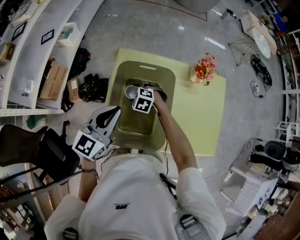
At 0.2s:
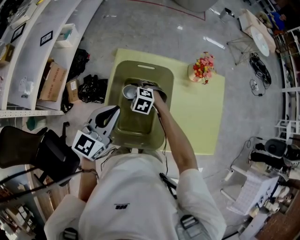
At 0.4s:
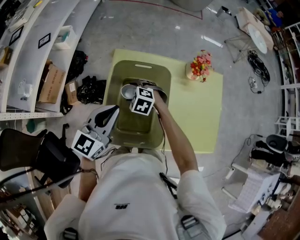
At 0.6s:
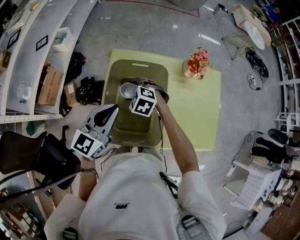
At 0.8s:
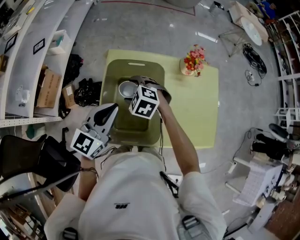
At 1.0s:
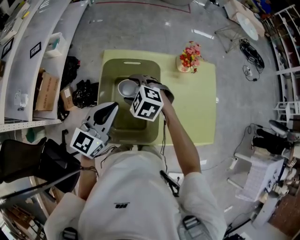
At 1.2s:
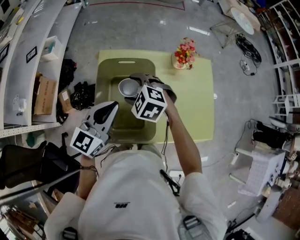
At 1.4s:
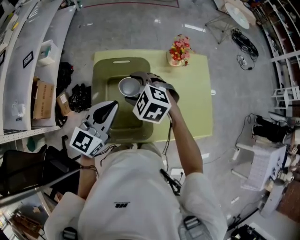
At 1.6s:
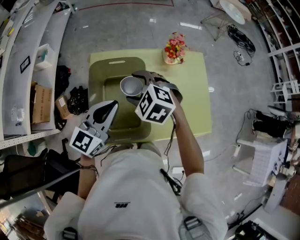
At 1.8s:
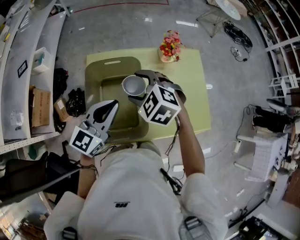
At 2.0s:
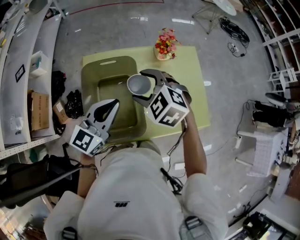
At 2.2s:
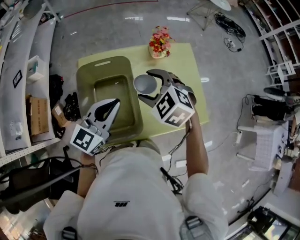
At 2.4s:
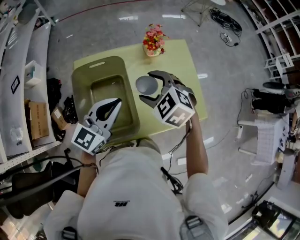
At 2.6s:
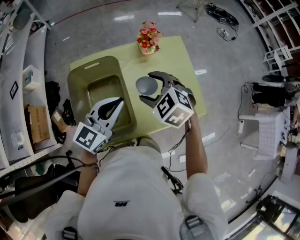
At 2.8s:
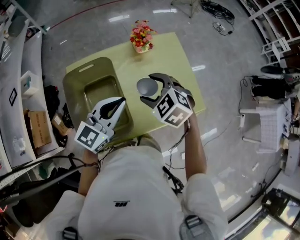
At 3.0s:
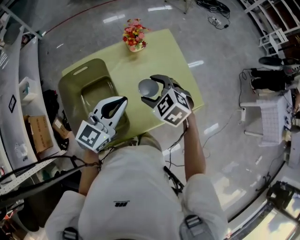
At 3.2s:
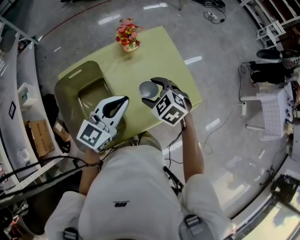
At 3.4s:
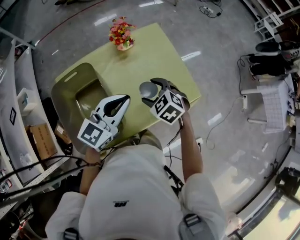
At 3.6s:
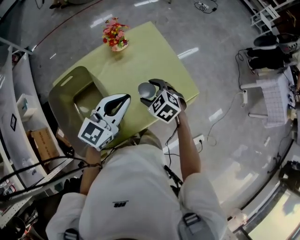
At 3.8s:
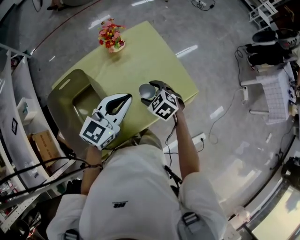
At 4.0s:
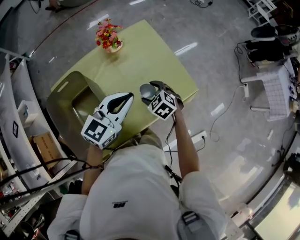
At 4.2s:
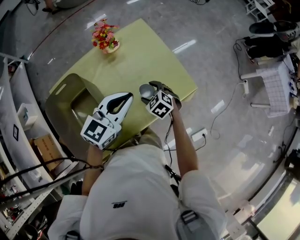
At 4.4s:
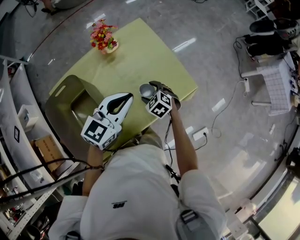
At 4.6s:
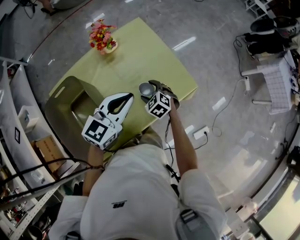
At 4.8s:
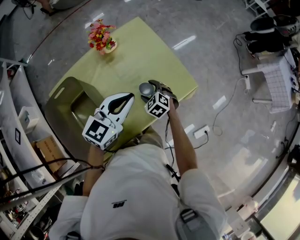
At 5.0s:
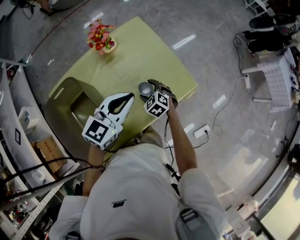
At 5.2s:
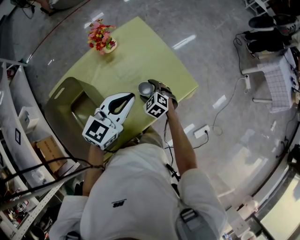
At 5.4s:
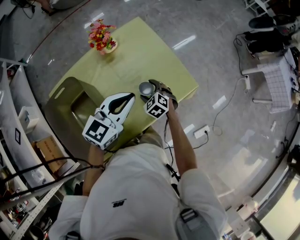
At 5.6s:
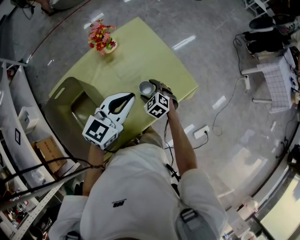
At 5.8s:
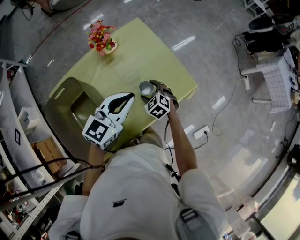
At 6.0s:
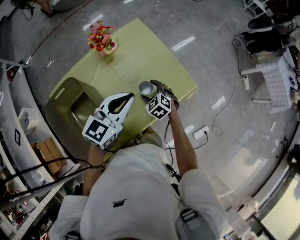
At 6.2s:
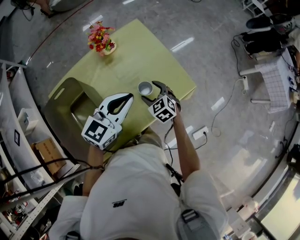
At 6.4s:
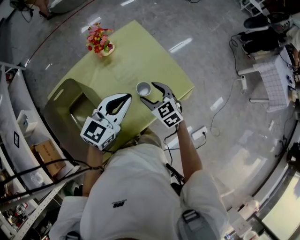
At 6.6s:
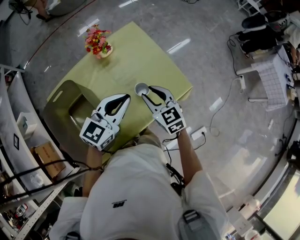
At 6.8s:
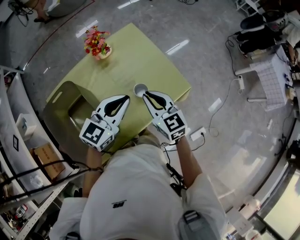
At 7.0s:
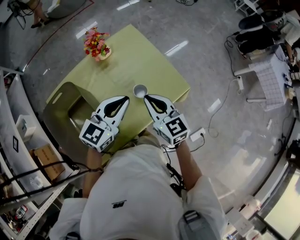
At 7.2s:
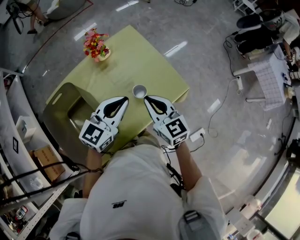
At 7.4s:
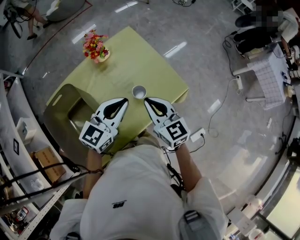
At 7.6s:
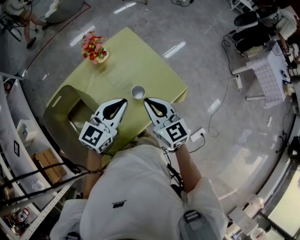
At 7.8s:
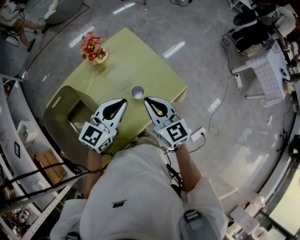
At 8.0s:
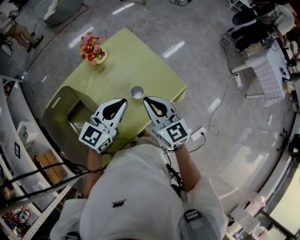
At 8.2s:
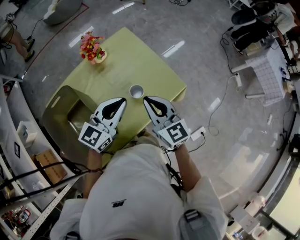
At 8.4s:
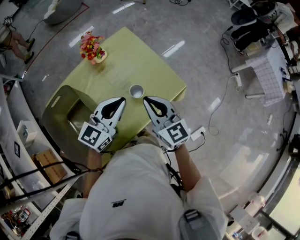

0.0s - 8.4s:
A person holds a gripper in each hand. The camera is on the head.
0.0s - 1.4s: The right gripper shifts roughly 20 cm upward. Meanwhile the left gripper travels to the right by about 5 cm.
1.4s - 2.8s: Both grippers travel together to the right, roughly 15 cm. The left gripper swivels about 20 degrees, while the right gripper swivels roughly 30 degrees.
2.8s - 4.2s: The left gripper moves to the right, roughly 15 cm. Meanwhile the right gripper is displaced downward and to the right by some 25 cm, and turns by approximately 20 degrees.
4.2s - 5.6s: The grippers stay close to where they were, moving slightly.
5.6s - 7.0s: The right gripper is displaced upward by approximately 20 cm, tilts its fingers about 40 degrees upward, and closes up.
7.0s - 8.4s: The grippers stay close to where they were, moving slightly.

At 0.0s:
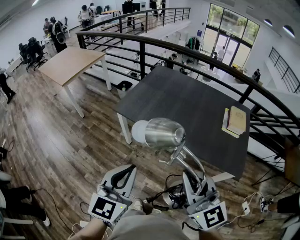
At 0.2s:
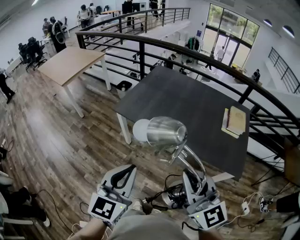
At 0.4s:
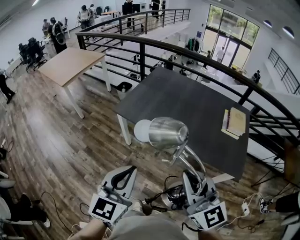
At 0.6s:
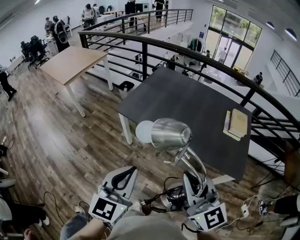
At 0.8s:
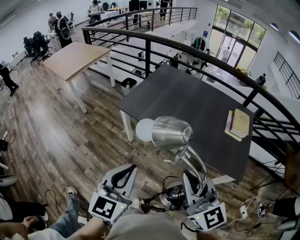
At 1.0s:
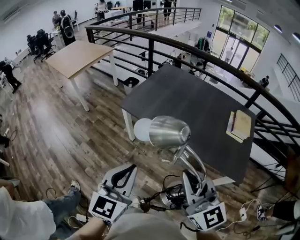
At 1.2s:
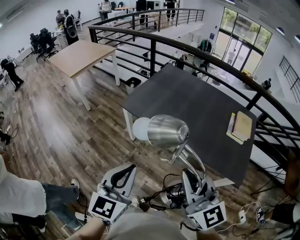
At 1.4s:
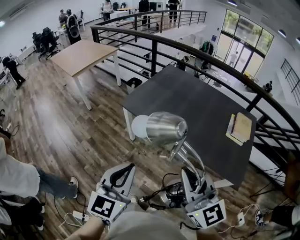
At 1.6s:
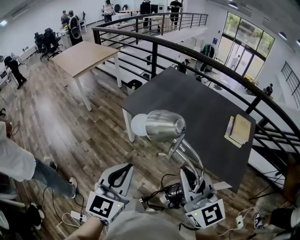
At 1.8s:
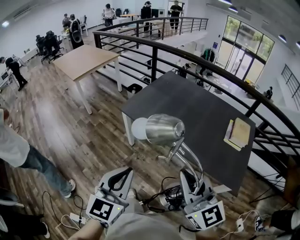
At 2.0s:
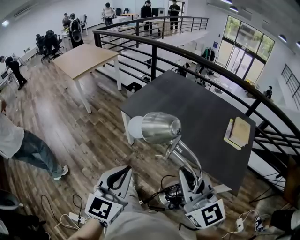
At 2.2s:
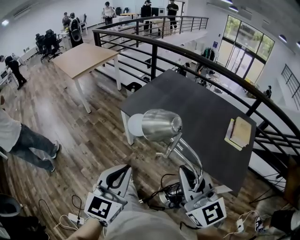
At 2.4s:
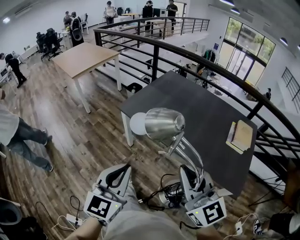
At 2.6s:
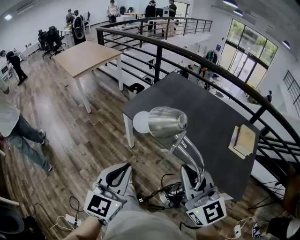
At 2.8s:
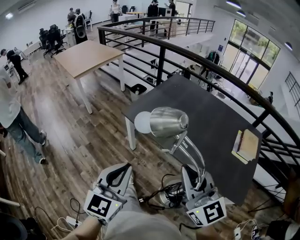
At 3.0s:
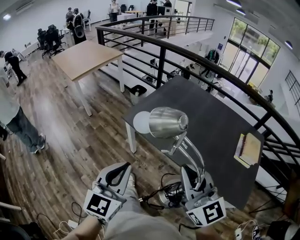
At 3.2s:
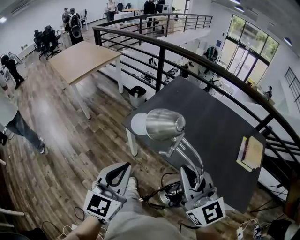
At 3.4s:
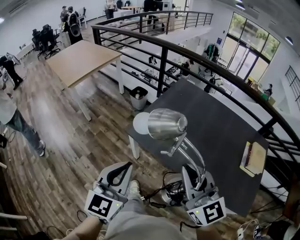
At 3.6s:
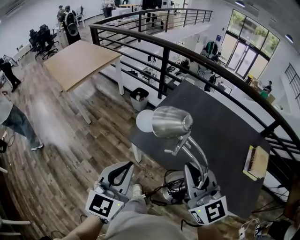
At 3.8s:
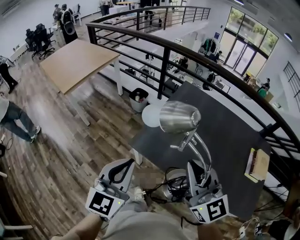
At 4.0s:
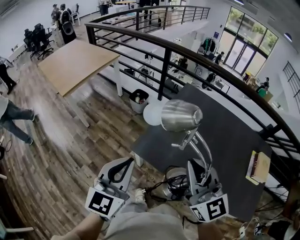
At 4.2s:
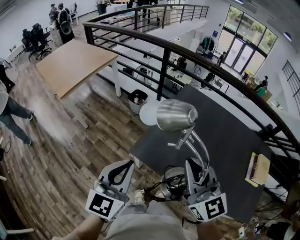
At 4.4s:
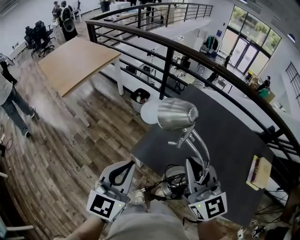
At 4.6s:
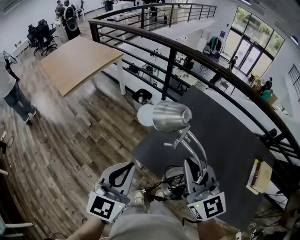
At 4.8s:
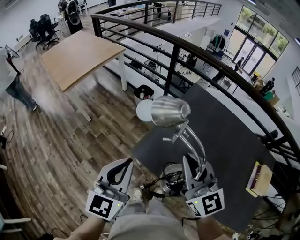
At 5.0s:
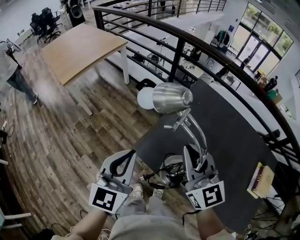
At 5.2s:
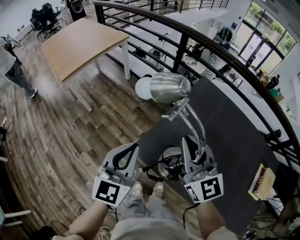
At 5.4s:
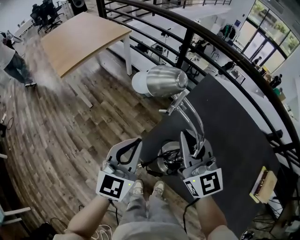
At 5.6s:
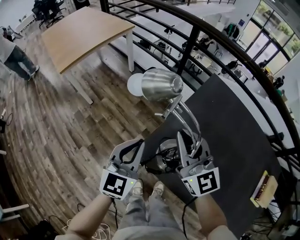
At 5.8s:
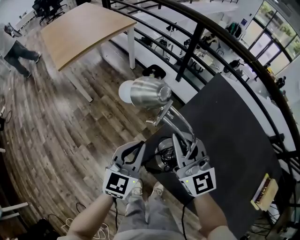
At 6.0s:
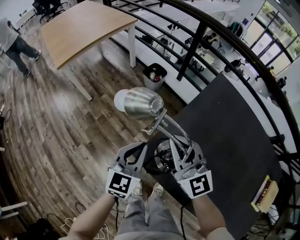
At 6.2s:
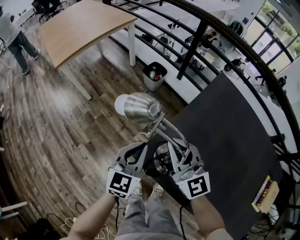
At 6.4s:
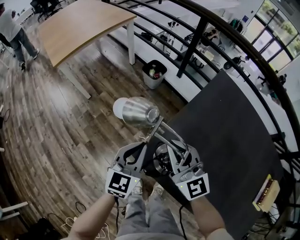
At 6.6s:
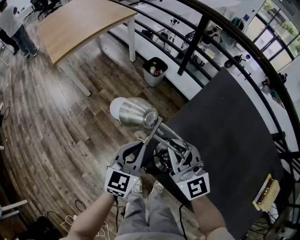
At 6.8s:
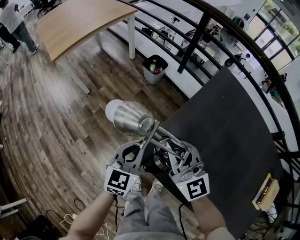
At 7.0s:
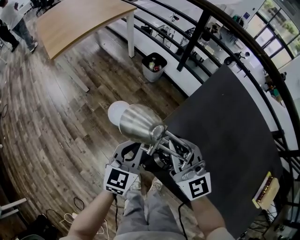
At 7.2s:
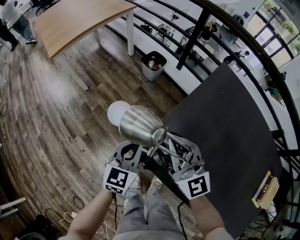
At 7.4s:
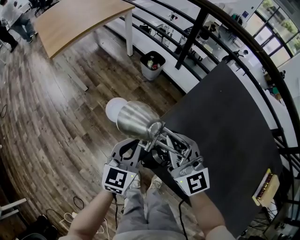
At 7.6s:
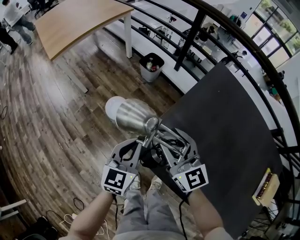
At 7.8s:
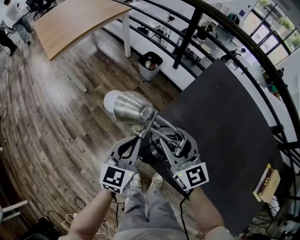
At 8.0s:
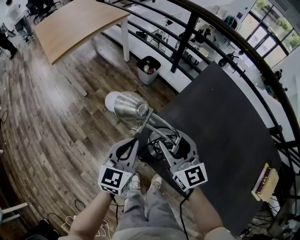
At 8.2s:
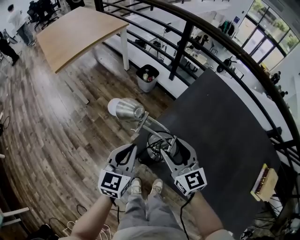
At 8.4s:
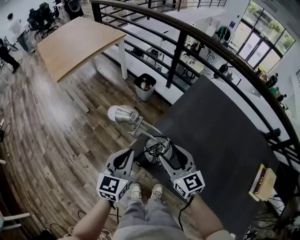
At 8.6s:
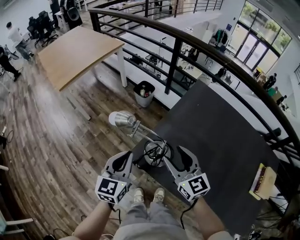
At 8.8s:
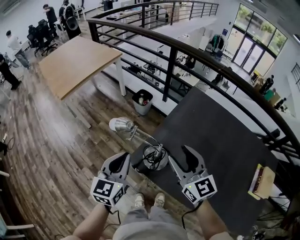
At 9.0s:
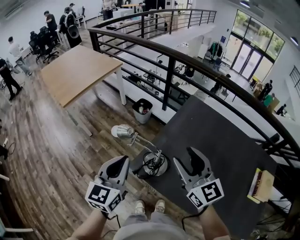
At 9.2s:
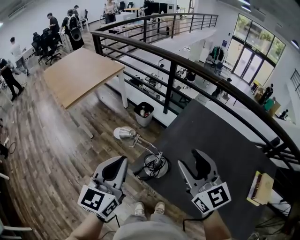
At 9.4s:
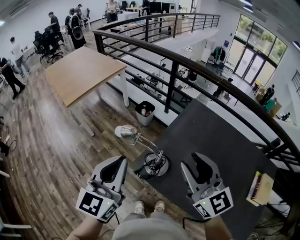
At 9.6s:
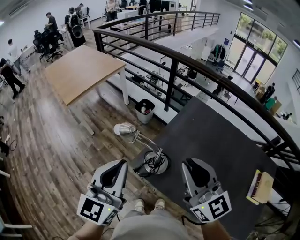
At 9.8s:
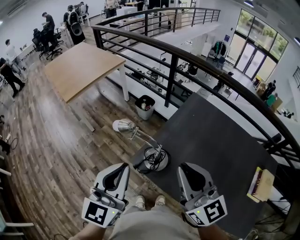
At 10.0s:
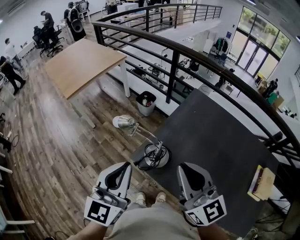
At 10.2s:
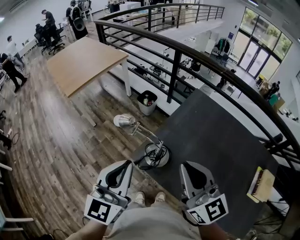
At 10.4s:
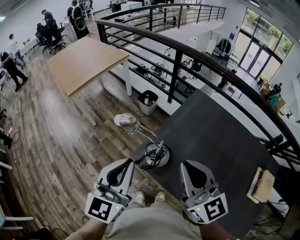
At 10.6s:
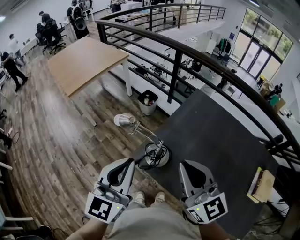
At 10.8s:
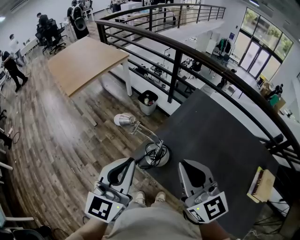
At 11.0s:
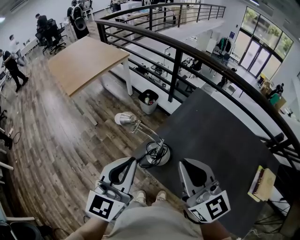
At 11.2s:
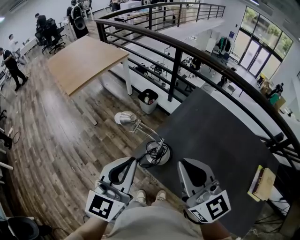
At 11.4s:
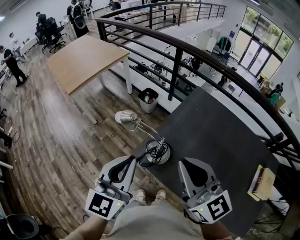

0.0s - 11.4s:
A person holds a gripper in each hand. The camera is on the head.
0.0s - 1.4s: The grippers move only a little.
1.4s - 2.8s: The two grippers go about 10 cm forward.
2.8s - 4.2s: The two grippers go approximately 35 cm forward.
4.2s - 5.6s: Both grippers travel together forward and downward, about 25 cm.
5.6s - 7.2s: The grippers both shift downward by approximately 15 cm.
7.2s - 8.6s: The left gripper shifts some 15 cm upward and backward, while the right gripper goes roughly 10 cm backward, to the right and upward, and opens.
8.6s - 10.0s: Both grippers move upward and backward, roughly 20 cm. The right gripper closes its fingers.
10.0s - 11.4s: The grippers stay close to where they were, moving slightly.

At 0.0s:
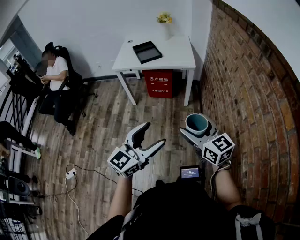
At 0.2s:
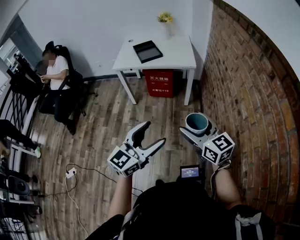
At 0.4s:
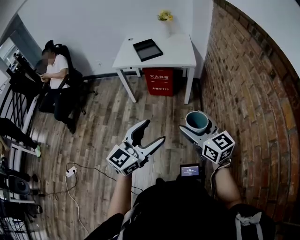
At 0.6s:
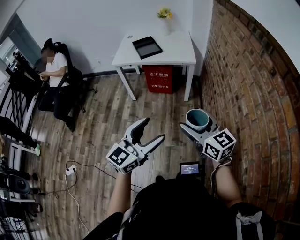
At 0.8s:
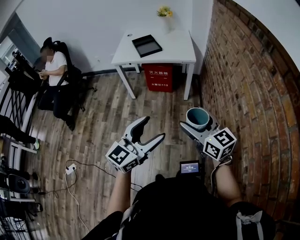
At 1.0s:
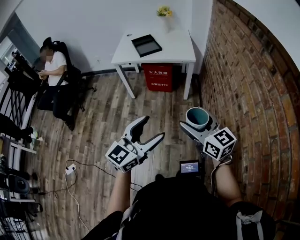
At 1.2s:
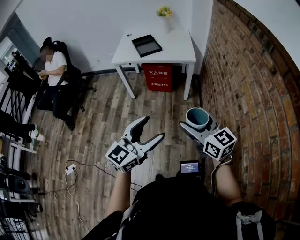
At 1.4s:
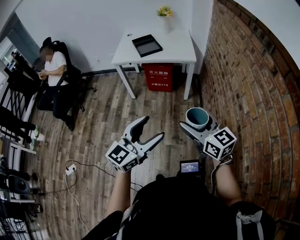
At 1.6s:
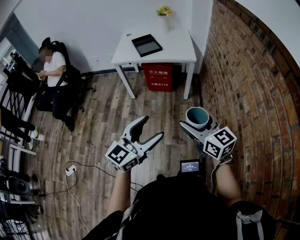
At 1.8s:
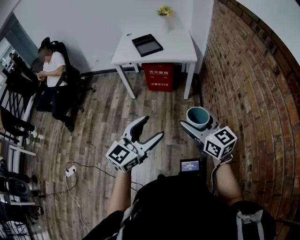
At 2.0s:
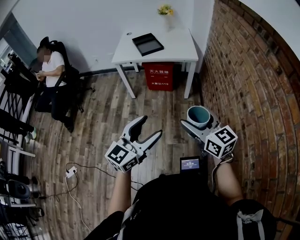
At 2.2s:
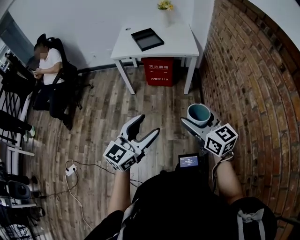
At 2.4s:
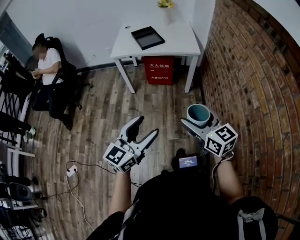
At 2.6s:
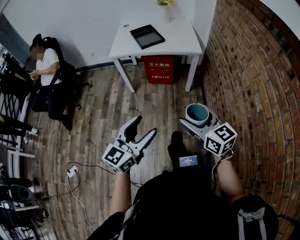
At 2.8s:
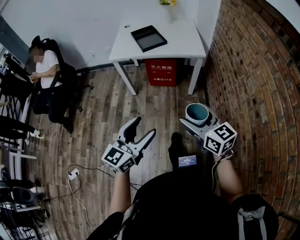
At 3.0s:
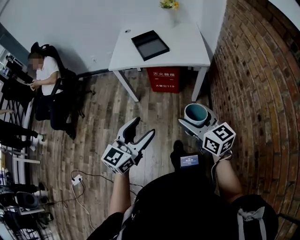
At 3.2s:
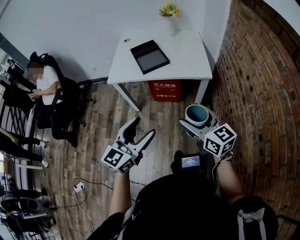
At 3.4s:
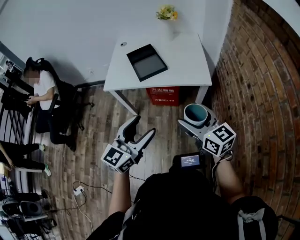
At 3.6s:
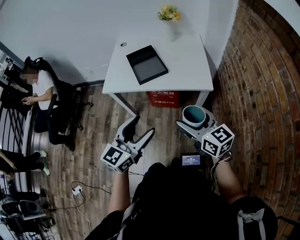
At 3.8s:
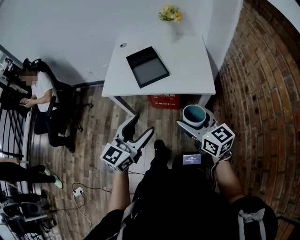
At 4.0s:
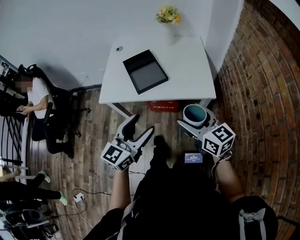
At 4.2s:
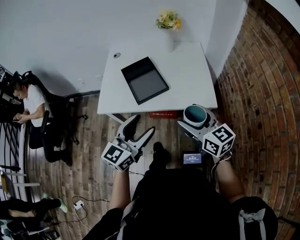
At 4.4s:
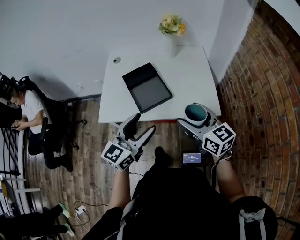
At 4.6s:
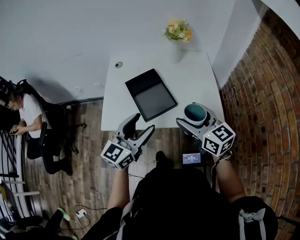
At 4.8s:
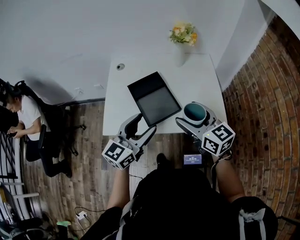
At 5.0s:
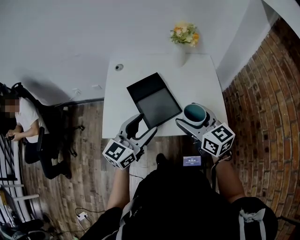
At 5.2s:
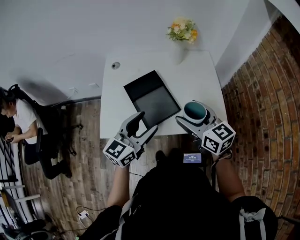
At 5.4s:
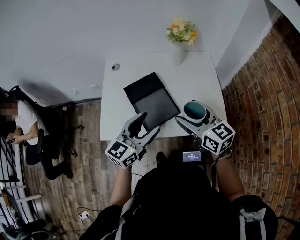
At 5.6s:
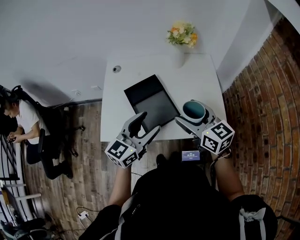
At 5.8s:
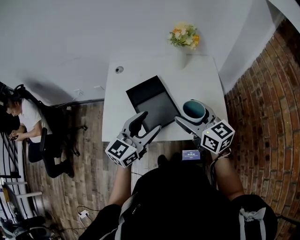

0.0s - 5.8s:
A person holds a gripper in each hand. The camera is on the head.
0.0s - 1.4s: The grippers stay close to where they were, moving slightly.
1.4s - 2.8s: Both grippers move forward, to the left and downward, approximately 15 cm.
2.8s - 4.4s: The pair of grippers is taken forward, about 50 cm.
4.4s - 5.8s: The grippers both shift forward by roughly 15 cm.
